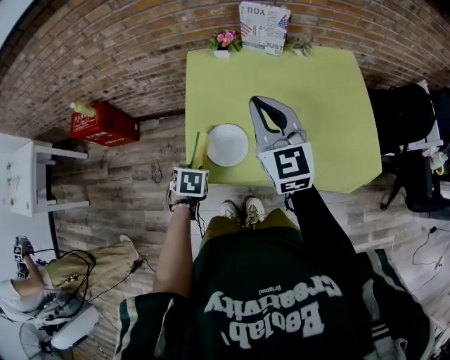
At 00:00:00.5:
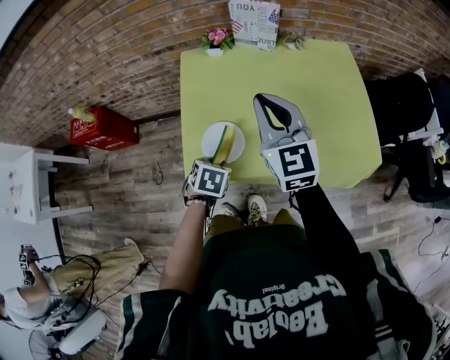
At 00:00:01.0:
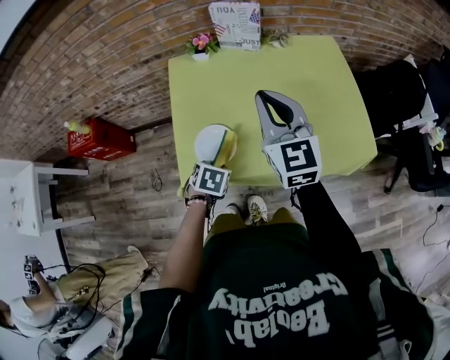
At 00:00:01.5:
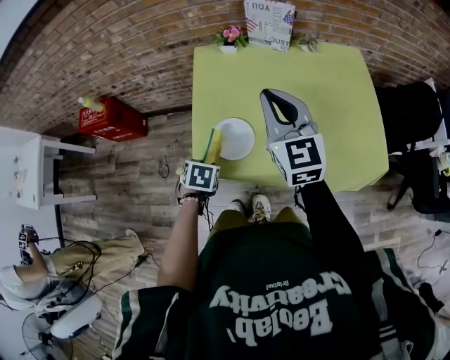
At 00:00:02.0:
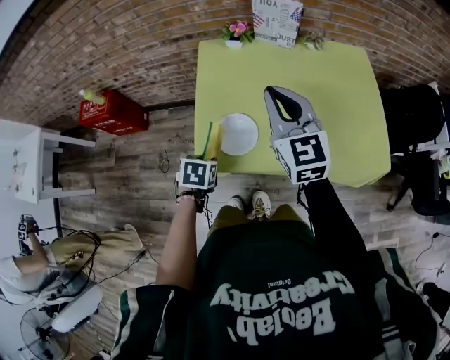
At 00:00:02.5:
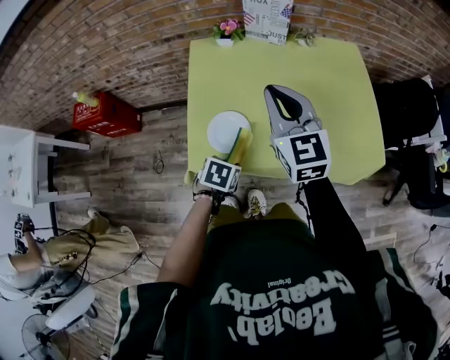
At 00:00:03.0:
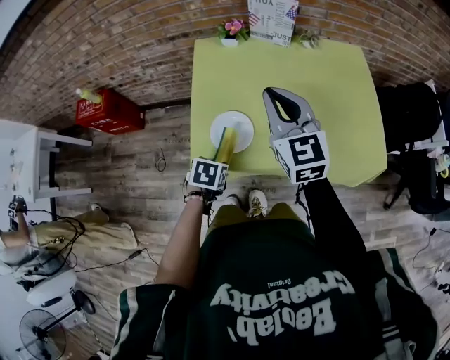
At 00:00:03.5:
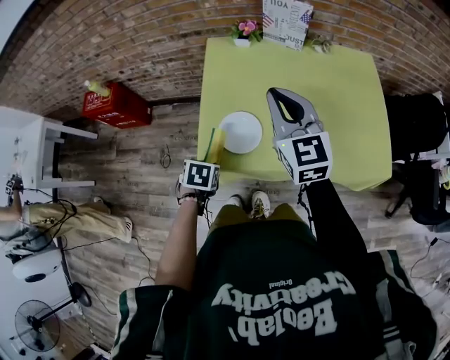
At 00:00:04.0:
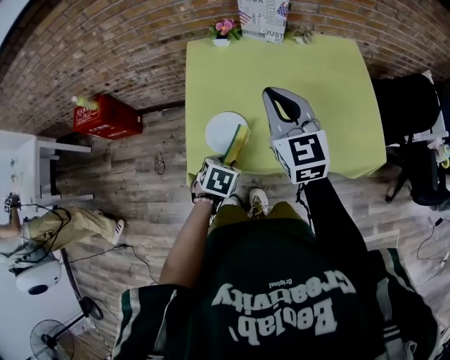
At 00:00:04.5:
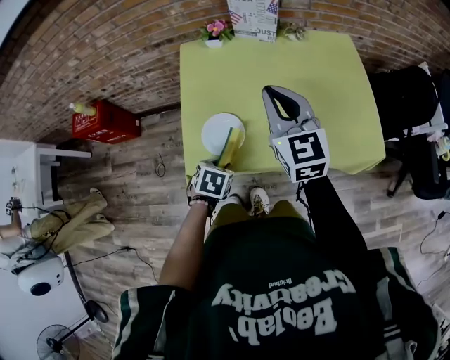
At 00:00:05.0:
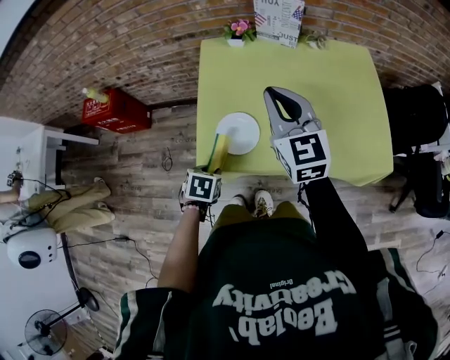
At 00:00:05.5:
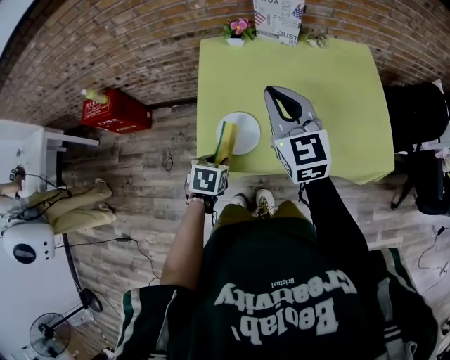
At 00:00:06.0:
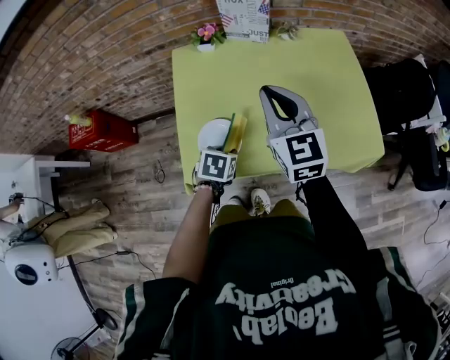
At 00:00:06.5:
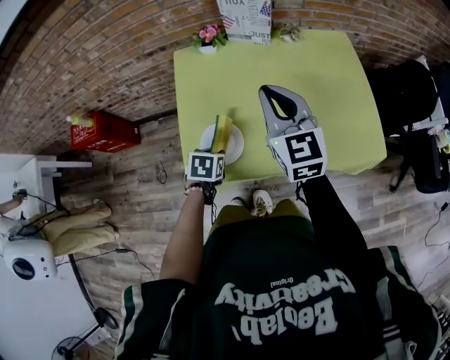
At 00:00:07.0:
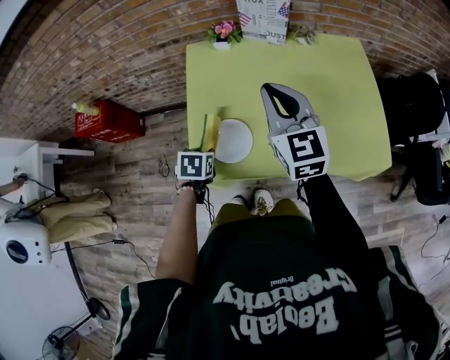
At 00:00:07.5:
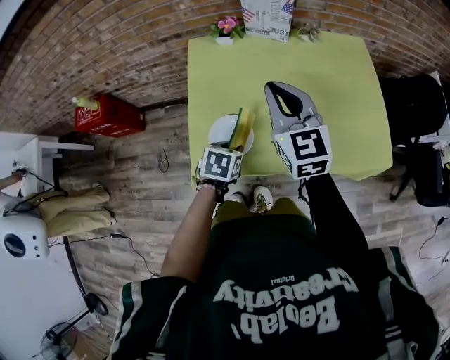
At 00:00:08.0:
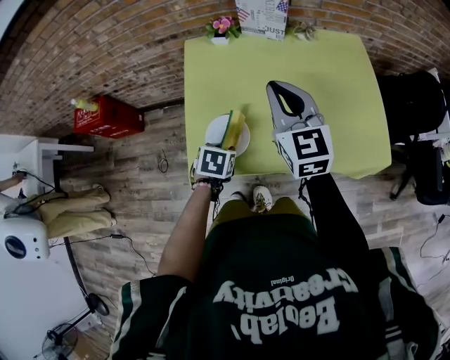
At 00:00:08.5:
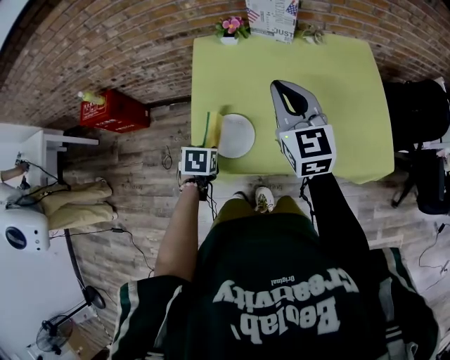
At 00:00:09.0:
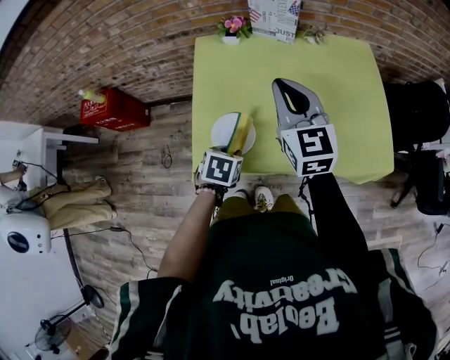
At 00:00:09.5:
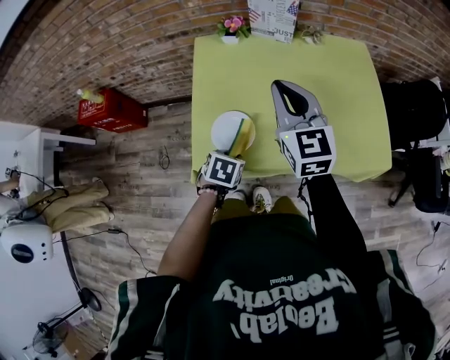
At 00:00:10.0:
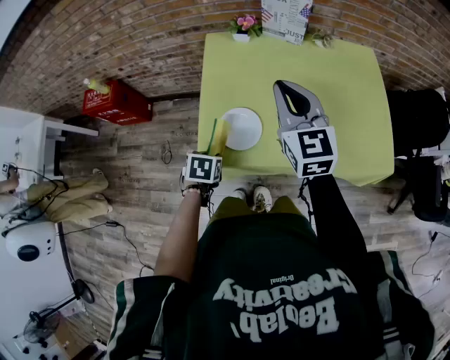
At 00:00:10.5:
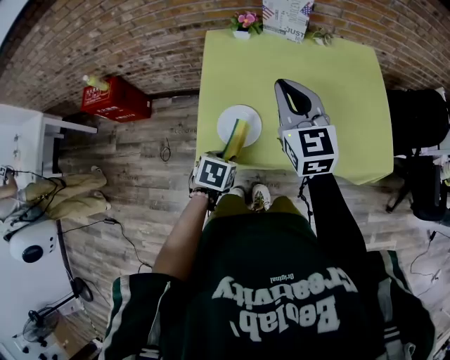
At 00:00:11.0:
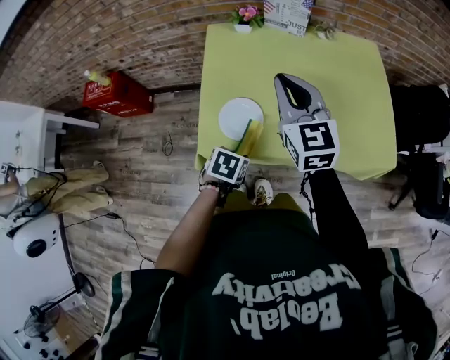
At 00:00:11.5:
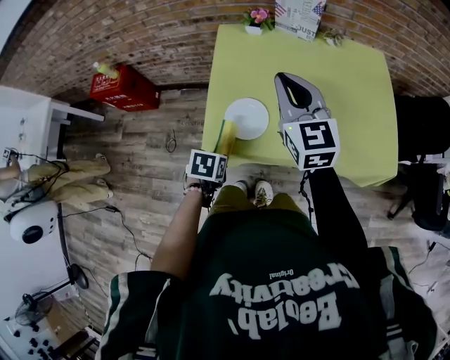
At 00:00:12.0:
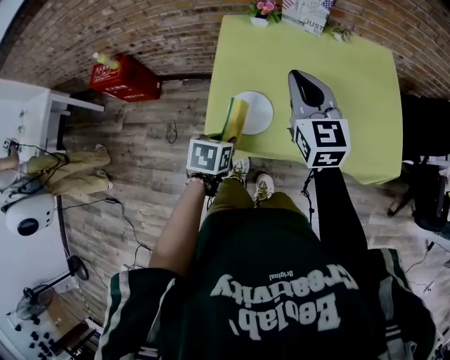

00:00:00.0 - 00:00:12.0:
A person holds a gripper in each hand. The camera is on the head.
00:00:00.0 - 00:00:02.0: The left gripper reaches approximately 10 cm to the right, then returns; the right gripper travels to the right and back again, roughly 10 cm each way.
00:00:02.0 - 00:00:04.0: The left gripper goes left and right, about 10 cm each way, reversing 2 times.
00:00:04.0 - 00:00:06.0: The left gripper shifts about 5 cm forward, and moves some 10 cm to the left and comes back.
00:00:06.0 - 00:00:08.0: The left gripper moves roughly 10 cm to the left and comes back.
00:00:08.0 - 00:00:10.0: The left gripper moves left and right over some 10 cm, changing direction 2 times.
00:00:10.0 - 00:00:12.0: The left gripper heads upward, covering roughly 5 cm.

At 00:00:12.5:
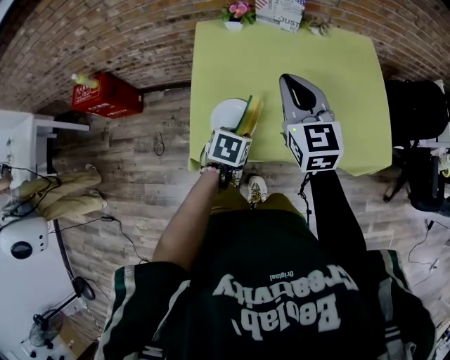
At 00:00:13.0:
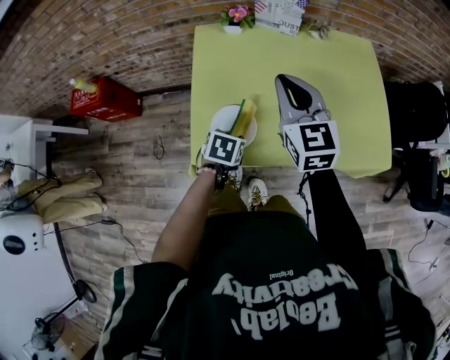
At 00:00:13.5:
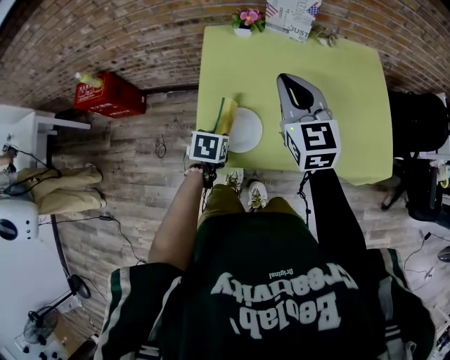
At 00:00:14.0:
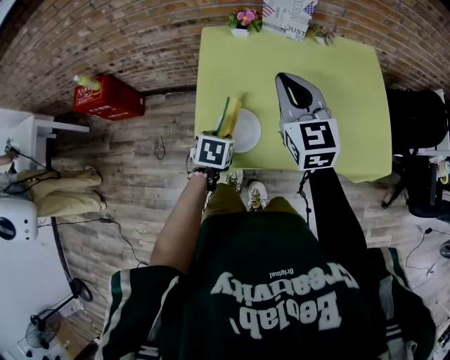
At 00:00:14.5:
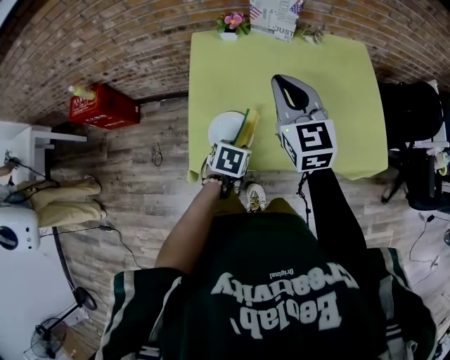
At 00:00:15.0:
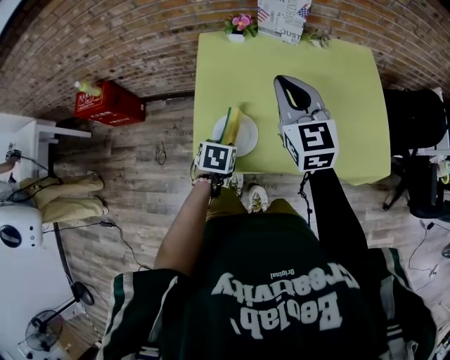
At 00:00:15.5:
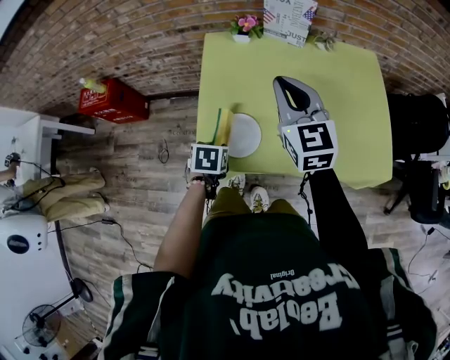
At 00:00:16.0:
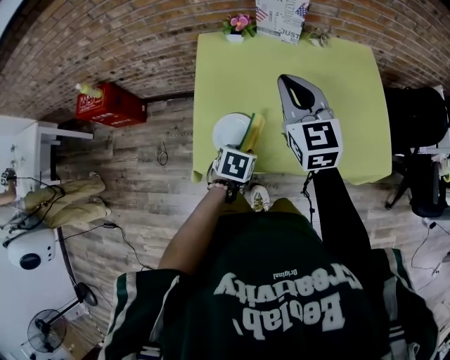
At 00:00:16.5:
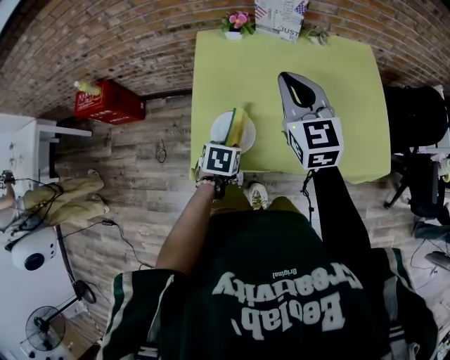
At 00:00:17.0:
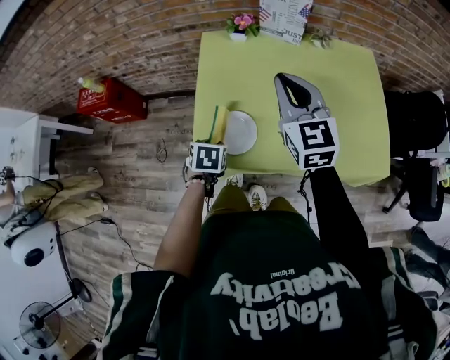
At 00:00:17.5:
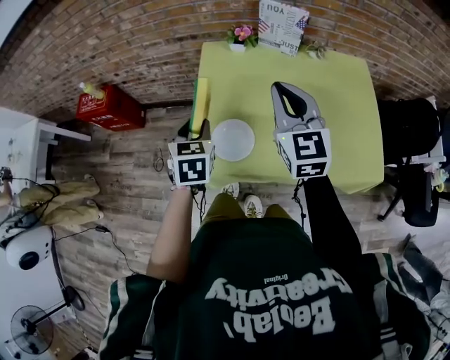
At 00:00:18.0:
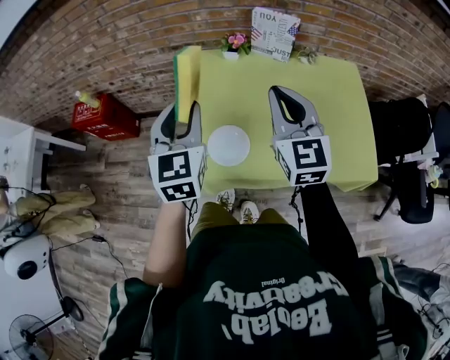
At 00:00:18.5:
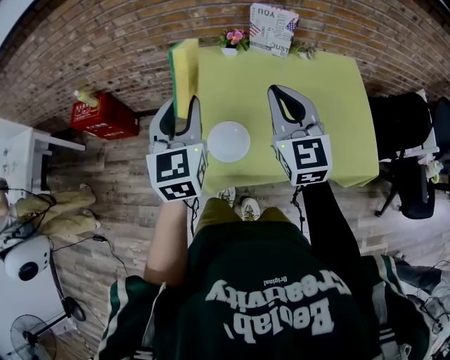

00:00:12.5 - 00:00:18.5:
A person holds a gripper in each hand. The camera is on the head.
00:00:12.5 - 00:00:14.5: The left gripper goes to the left and returns, roughly 10 cm each way.
00:00:14.5 - 00:00:16.5: The left gripper goes left and right, approximately 10 cm each way, reversing 2 times.
00:00:16.5 - 00:00:18.5: The left gripper travels upward by about 30 cm, and tips its fingers upward by some 60 degrees; the right gripper shifts some 5 cm upward and backward.

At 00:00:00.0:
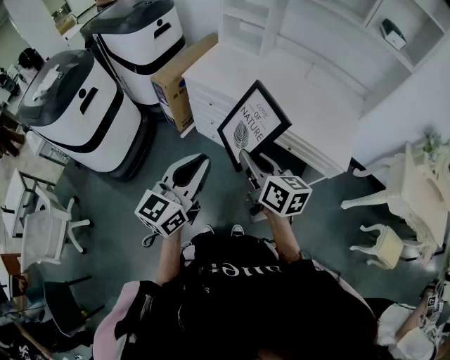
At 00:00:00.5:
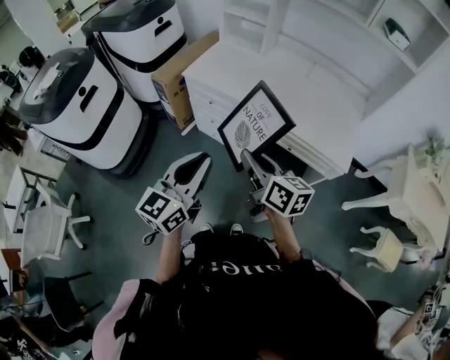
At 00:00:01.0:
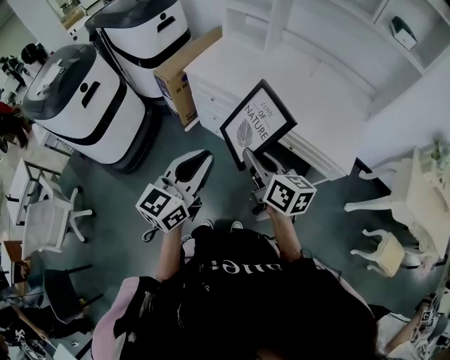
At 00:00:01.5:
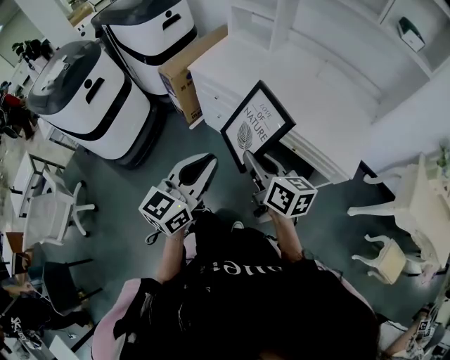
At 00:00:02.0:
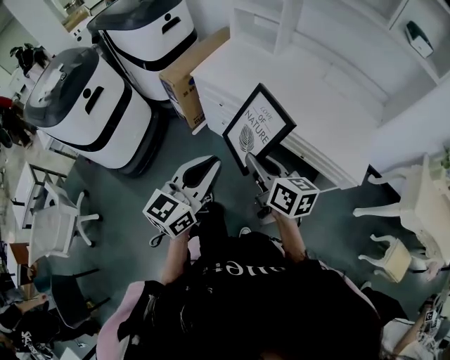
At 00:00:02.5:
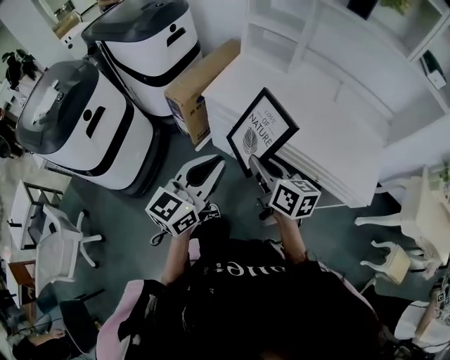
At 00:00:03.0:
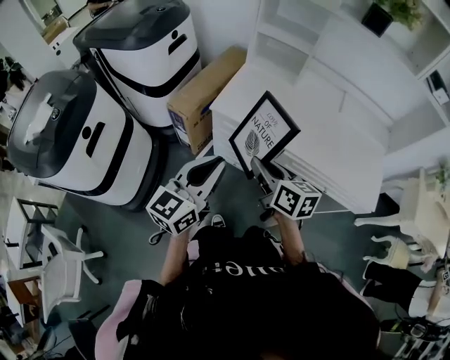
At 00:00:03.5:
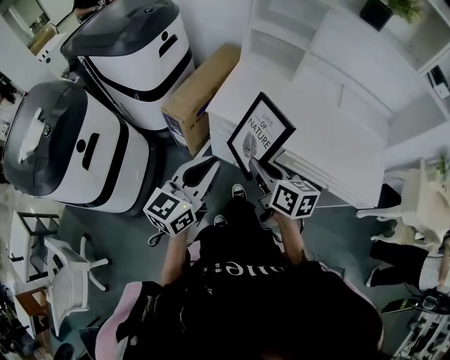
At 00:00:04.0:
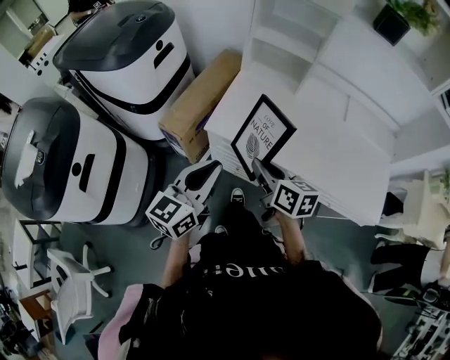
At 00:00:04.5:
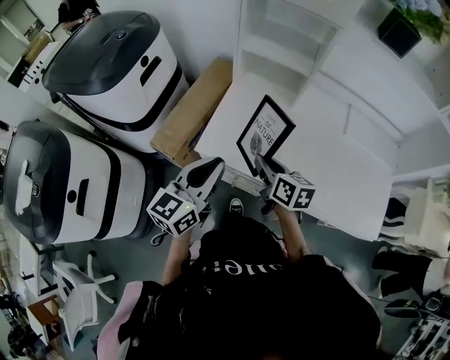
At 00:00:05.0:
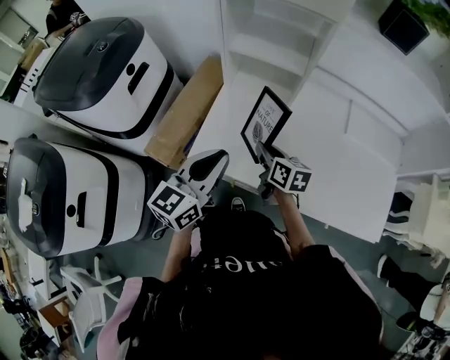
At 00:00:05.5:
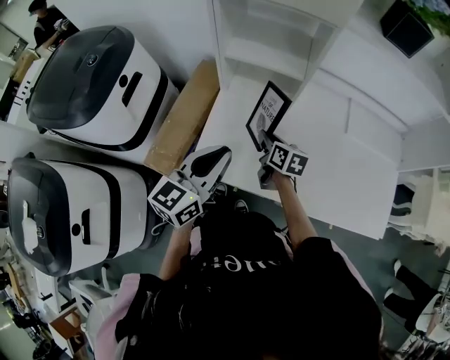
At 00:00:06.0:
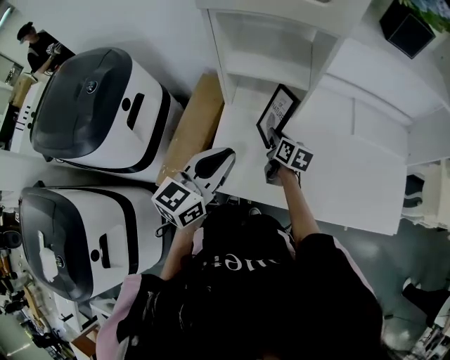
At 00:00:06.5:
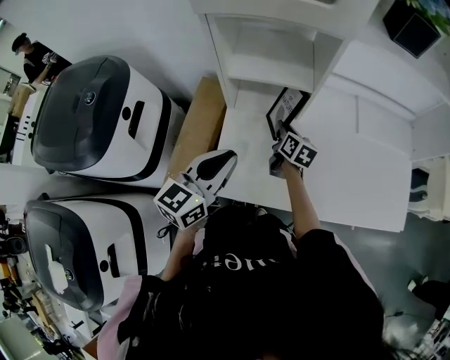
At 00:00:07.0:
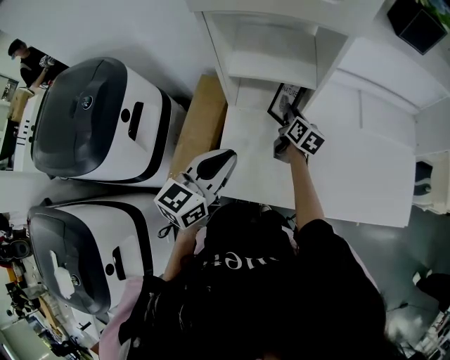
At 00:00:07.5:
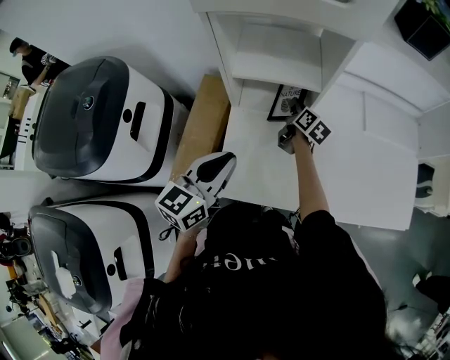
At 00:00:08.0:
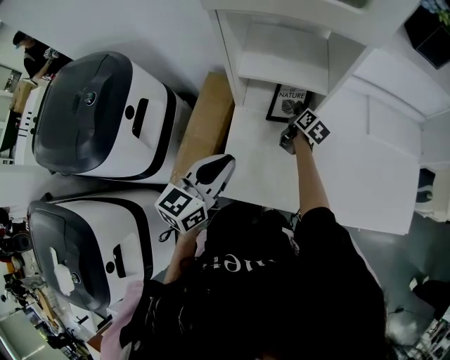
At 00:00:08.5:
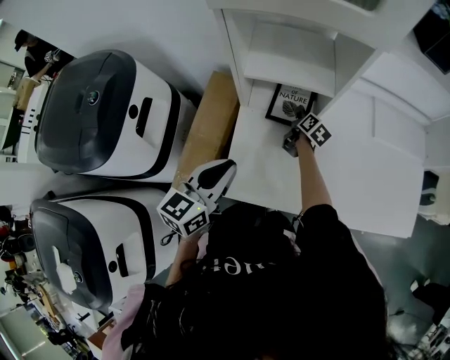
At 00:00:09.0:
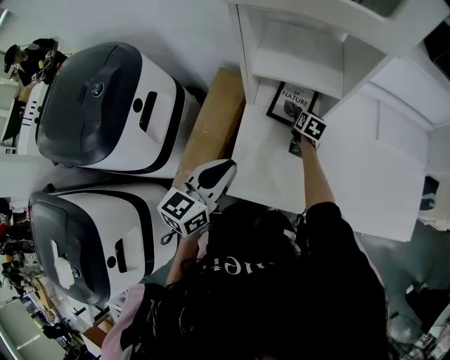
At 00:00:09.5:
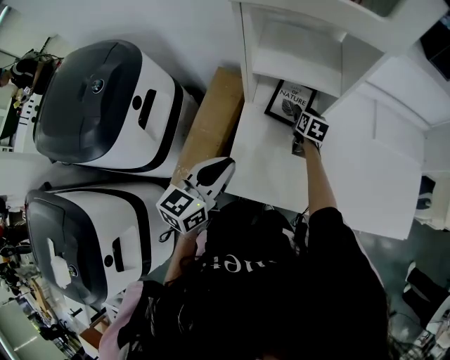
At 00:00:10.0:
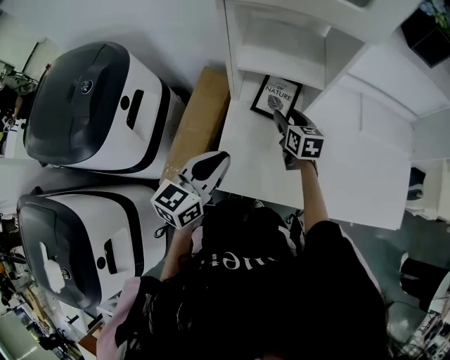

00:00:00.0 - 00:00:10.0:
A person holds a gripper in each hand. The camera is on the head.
00:00:00.0 - 00:00:02.0: Both grippers move forward, some 5 cm.
00:00:02.0 - 00:00:04.0: The two grippers go roughly 35 cm forward and to the left.
00:00:04.0 - 00:00:06.0: The grippers both shift forward by approximately 30 cm. The right gripper changes its angle by roughly 30 degrees.
00:00:06.0 - 00:00:08.0: The right gripper shifts roughly 15 cm forward, and turns by about 20 degrees. Meanwhile the left gripper is displaced to the left by approximately 5 cm.
00:00:08.0 - 00:00:10.0: The right gripper heads backward, upward and to the left, covering roughly 15 cm, turns by about 40 degrees, and opens.
